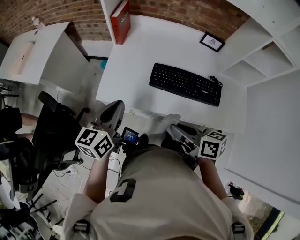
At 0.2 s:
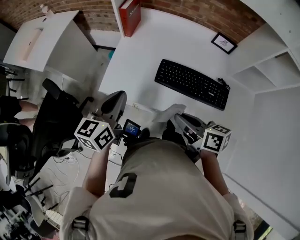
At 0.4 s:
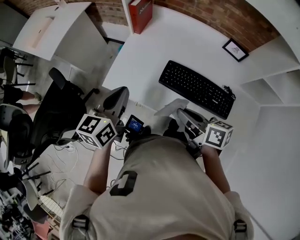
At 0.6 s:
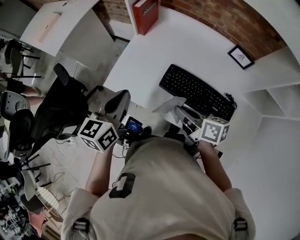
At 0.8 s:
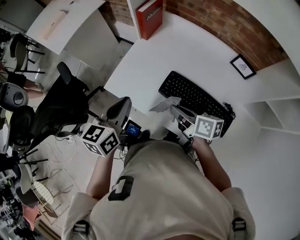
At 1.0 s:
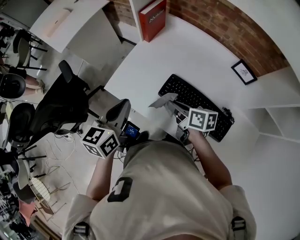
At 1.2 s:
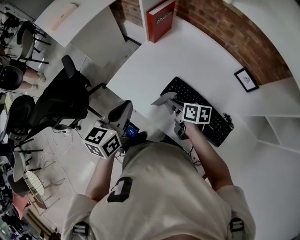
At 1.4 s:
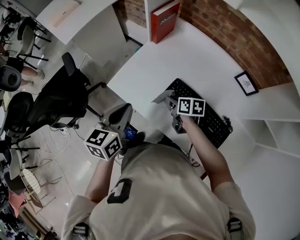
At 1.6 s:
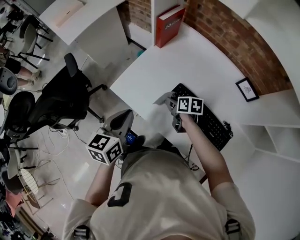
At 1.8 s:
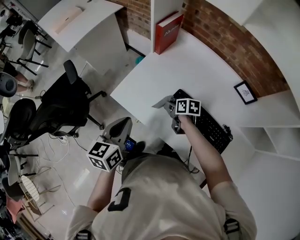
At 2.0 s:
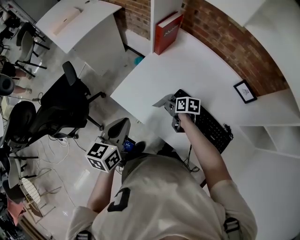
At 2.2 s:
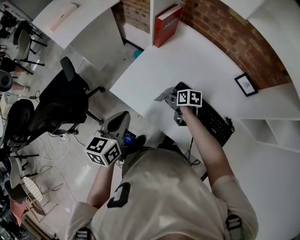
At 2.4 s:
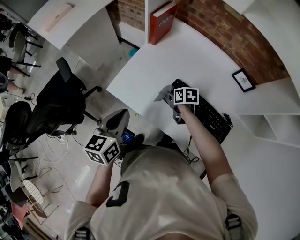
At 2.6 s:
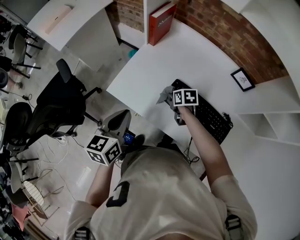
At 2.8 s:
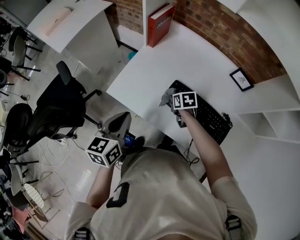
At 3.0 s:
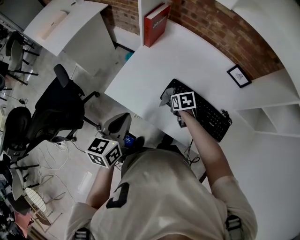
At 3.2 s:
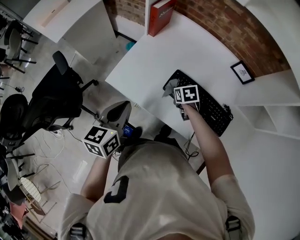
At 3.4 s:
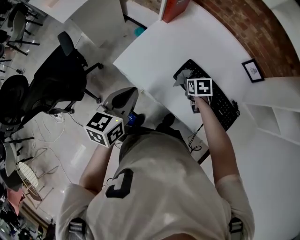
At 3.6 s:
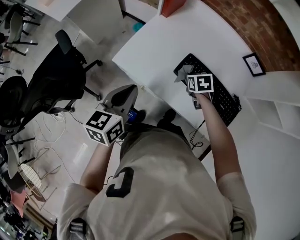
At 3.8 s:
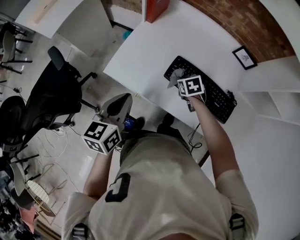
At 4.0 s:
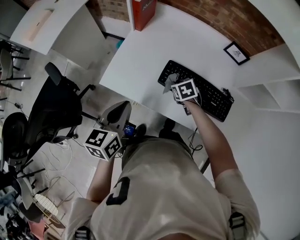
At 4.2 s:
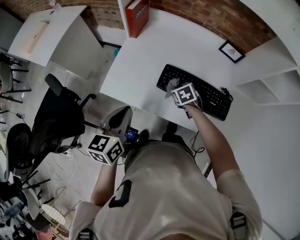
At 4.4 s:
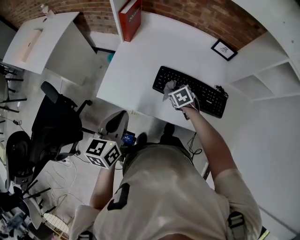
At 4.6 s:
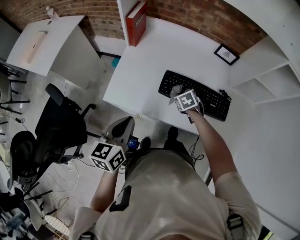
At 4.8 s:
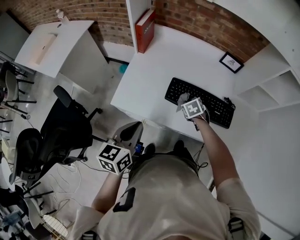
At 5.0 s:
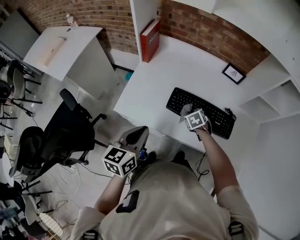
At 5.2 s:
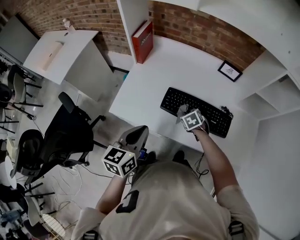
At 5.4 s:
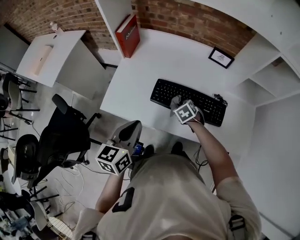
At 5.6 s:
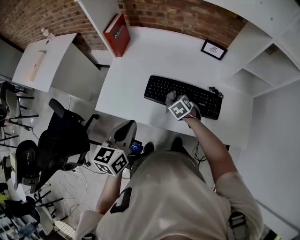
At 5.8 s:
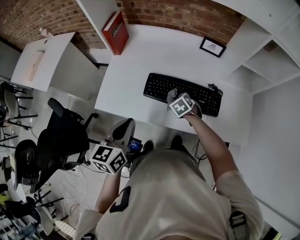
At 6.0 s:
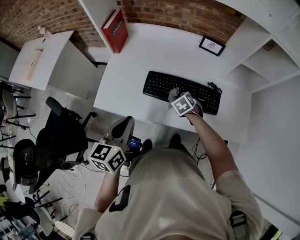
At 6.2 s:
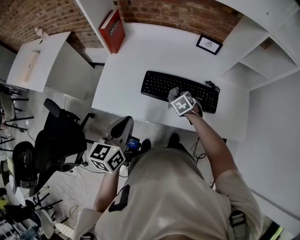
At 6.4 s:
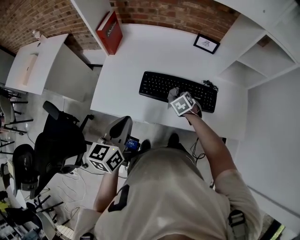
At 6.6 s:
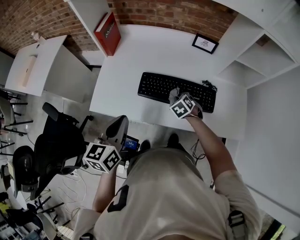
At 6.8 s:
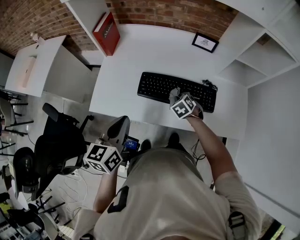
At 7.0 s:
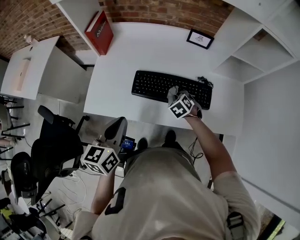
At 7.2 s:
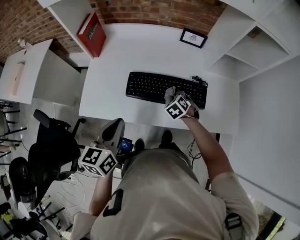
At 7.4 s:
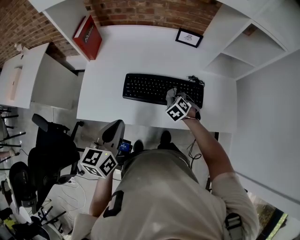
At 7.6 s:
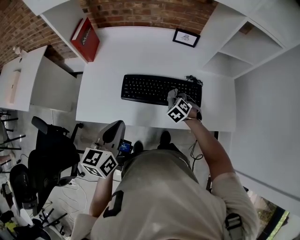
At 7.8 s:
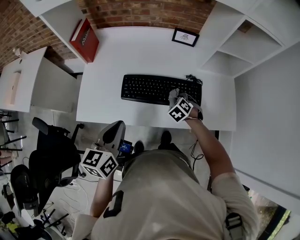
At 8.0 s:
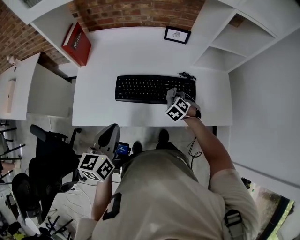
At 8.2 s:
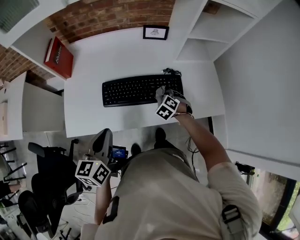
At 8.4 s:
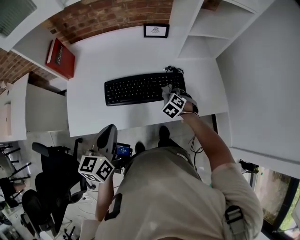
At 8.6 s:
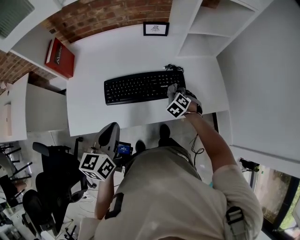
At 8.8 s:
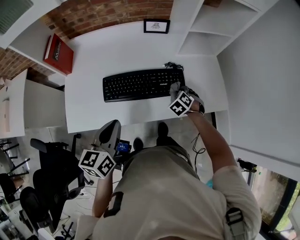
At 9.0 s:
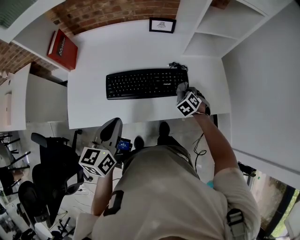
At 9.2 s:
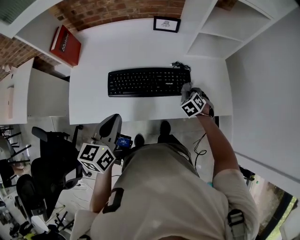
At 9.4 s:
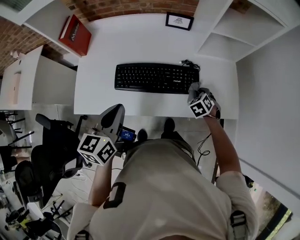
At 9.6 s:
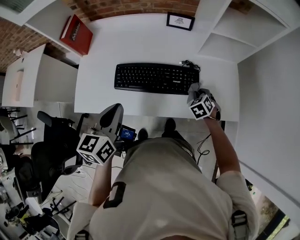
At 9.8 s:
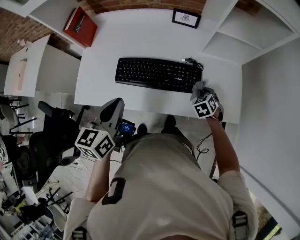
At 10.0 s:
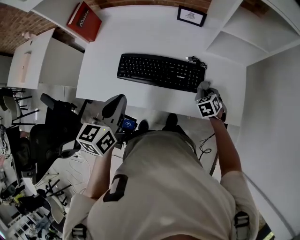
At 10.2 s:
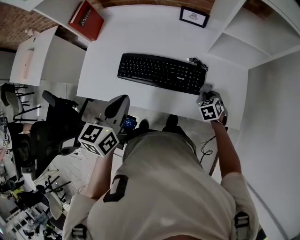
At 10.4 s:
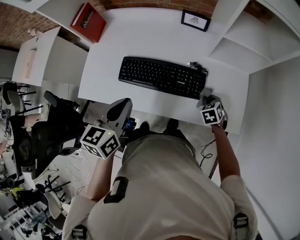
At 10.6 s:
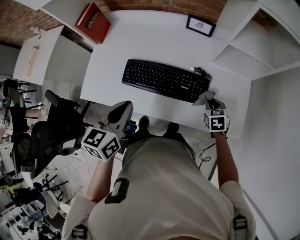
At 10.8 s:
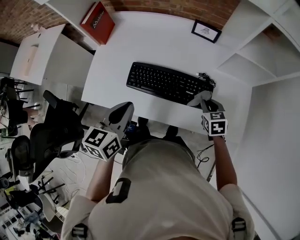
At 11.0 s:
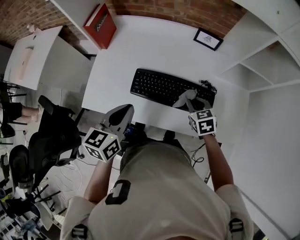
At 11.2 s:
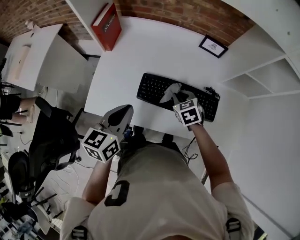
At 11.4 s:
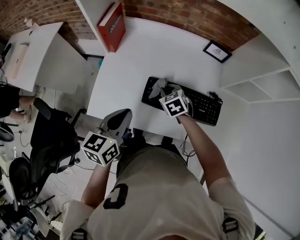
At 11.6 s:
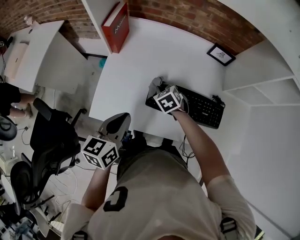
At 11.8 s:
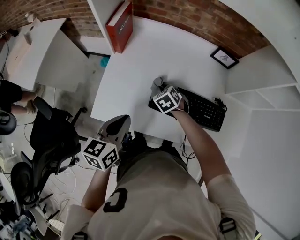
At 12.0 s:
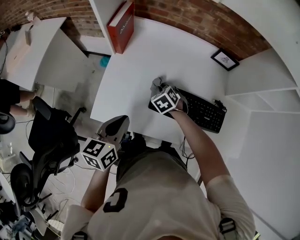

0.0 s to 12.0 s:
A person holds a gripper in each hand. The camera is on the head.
0.0 to 1.6 s: The right gripper travels forward and downward by about 30 cm, and swivels about 30 degrees, while the left gripper changes its angle by some 30 degrees.
1.6 to 3.0 s: The right gripper turns by approximately 20 degrees.
3.0 to 4.4 s: The right gripper ends up about 5 cm from where it was.
4.4 to 6.0 s: Both grippers travel together to the right, some 10 cm.
6.0 to 7.6 s: The right gripper is displaced to the right by about 10 cm.
7.6 to 9.0 s: The left gripper shifts by some 5 cm, while the right gripper shifts roughly 15 cm to the right.
9.0 to 10.4 s: The two grippers go roughly 5 cm to the right.
10.4 to 12.0 s: The right gripper shifts approximately 40 cm to the left, and changes its angle by about 20 degrees. The left gripper goes approximately 25 cm to the left.

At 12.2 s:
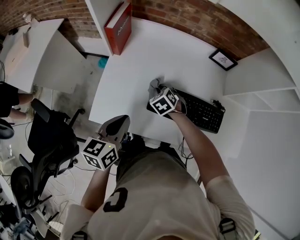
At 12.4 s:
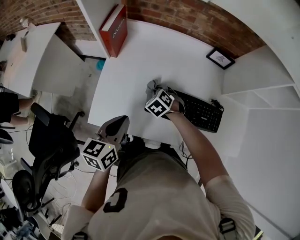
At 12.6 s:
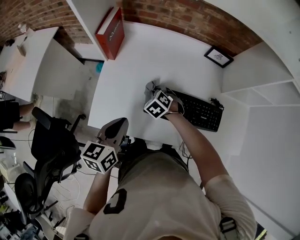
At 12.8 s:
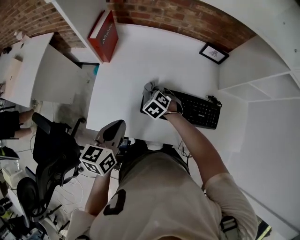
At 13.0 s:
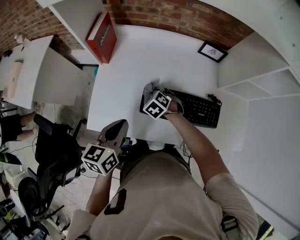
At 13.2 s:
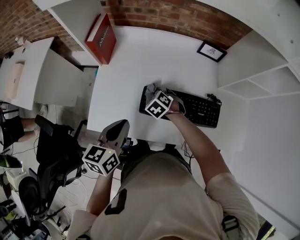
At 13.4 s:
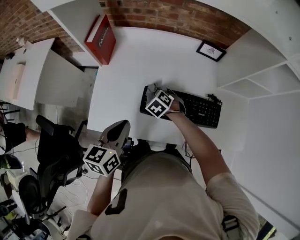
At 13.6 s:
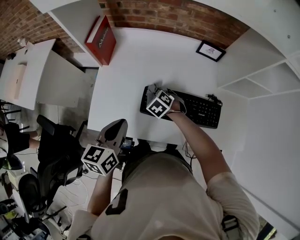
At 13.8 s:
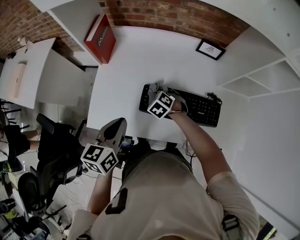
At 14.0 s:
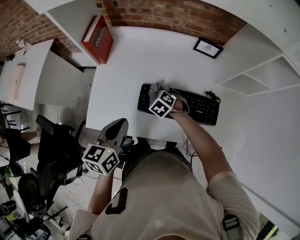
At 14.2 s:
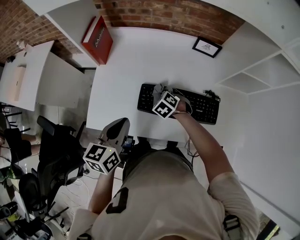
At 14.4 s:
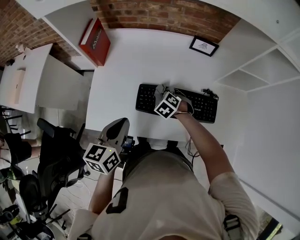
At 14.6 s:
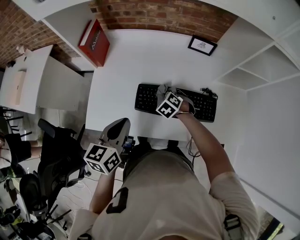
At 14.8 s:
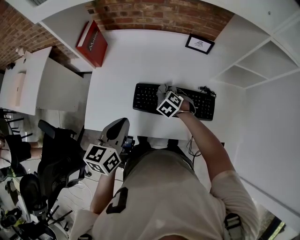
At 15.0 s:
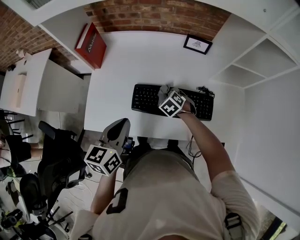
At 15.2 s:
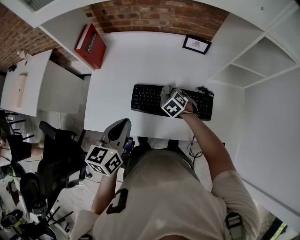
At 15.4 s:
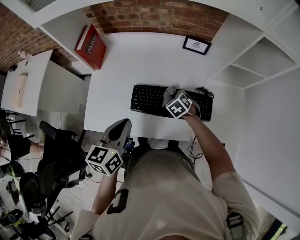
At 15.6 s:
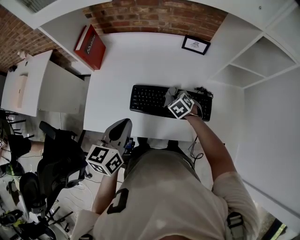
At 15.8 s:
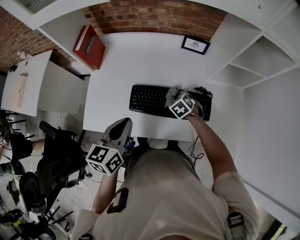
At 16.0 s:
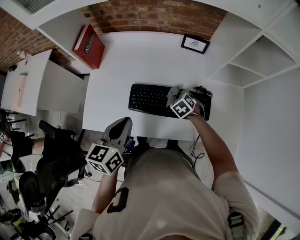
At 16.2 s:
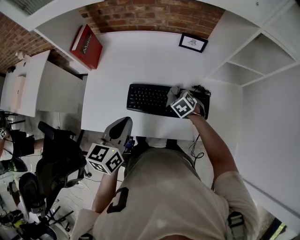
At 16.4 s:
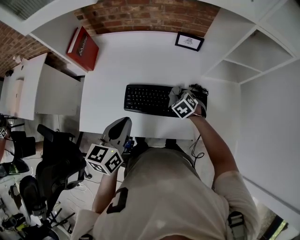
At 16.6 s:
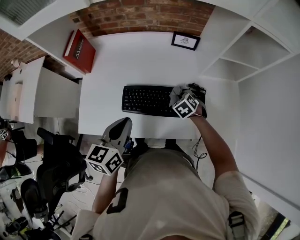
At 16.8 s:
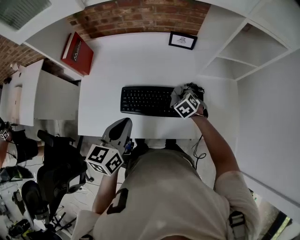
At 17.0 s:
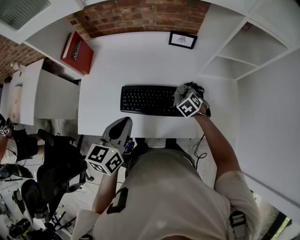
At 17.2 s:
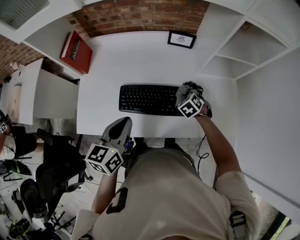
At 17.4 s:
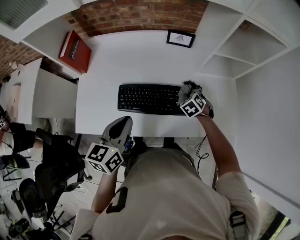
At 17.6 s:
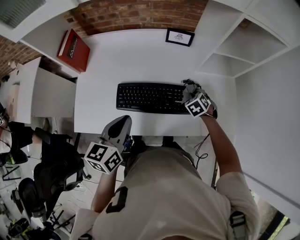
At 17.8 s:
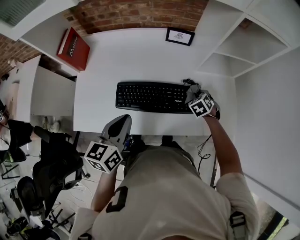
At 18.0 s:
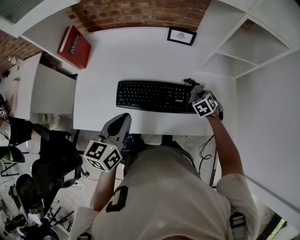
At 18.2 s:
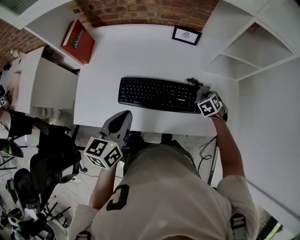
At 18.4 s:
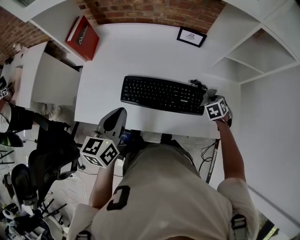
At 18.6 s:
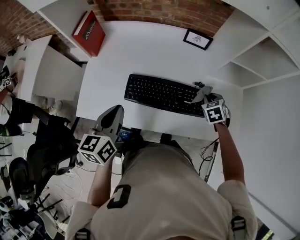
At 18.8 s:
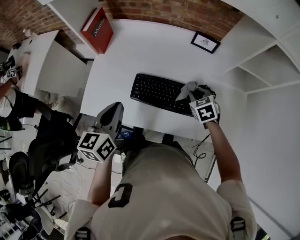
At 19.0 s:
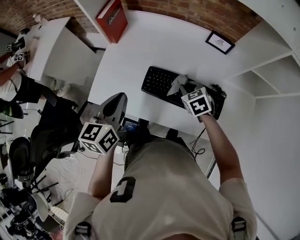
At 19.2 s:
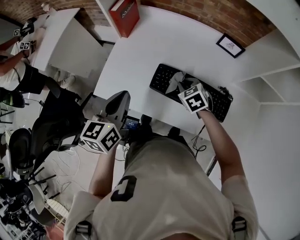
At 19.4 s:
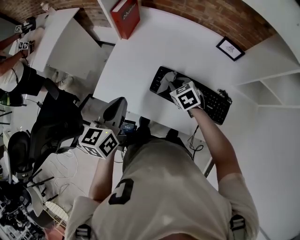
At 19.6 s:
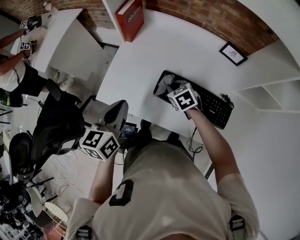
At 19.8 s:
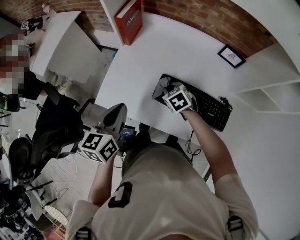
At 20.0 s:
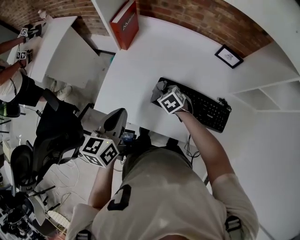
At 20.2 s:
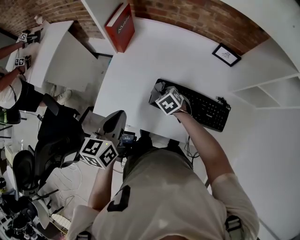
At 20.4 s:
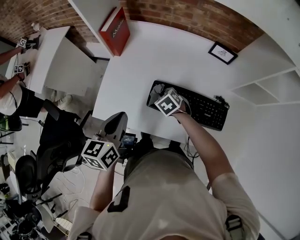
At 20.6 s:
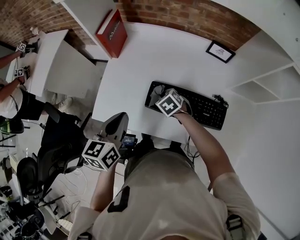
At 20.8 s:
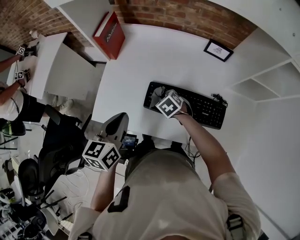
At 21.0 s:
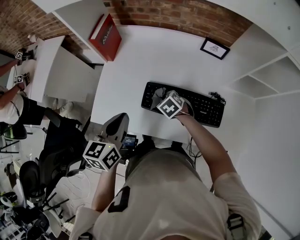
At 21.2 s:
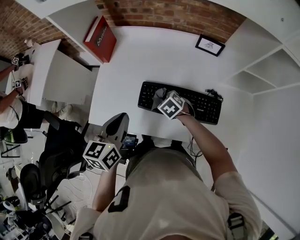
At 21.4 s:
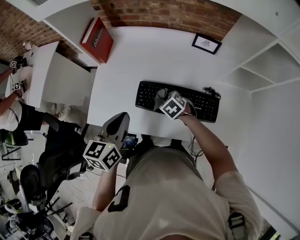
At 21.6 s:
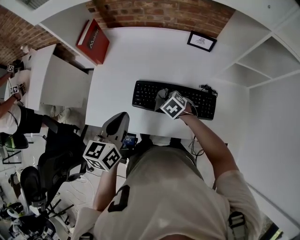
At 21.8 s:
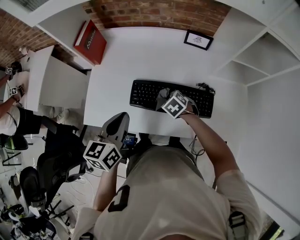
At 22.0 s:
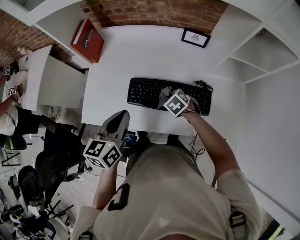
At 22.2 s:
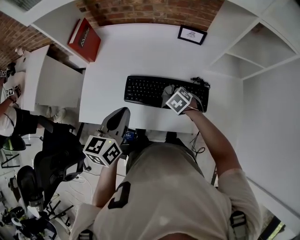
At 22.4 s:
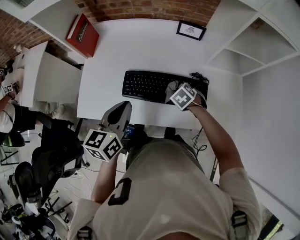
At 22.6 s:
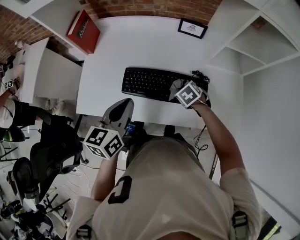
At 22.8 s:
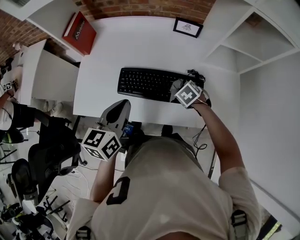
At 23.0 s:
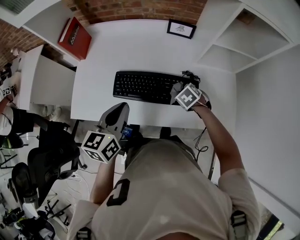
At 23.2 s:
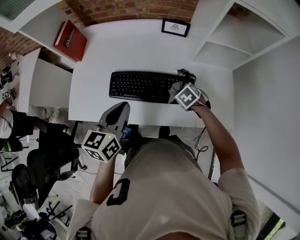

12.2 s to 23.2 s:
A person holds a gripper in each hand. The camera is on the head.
12.2 to 13.8 s: The left gripper changes place by some 5 cm; the right gripper is displaced to the right by approximately 5 cm.
13.8 to 15.4 s: The left gripper shifts about 5 cm to the right; the right gripper travels to the right by some 15 cm.
15.4 to 17.0 s: The right gripper travels to the right by roughly 10 cm. The left gripper heads to the right, covering about 5 cm.
17.0 to 18.4 s: The right gripper heads to the right, covering about 15 cm.
18.4 to 20.0 s: The right gripper changes place by approximately 40 cm, and changes its angle by roughly 40 degrees. The left gripper shifts by some 15 cm.
20.0 to 21.6 s: The right gripper travels to the right and backward by roughly 15 cm. Meanwhile the left gripper goes about 10 cm to the right.
21.6 to 23.2 s: The left gripper is displaced to the right by some 10 cm; the right gripper travels to the right by approximately 20 cm.

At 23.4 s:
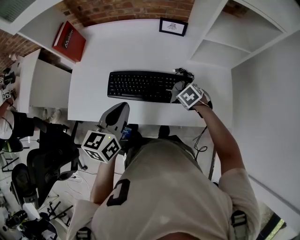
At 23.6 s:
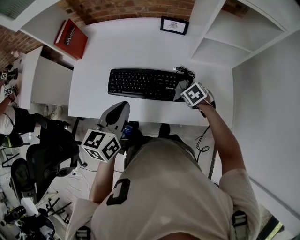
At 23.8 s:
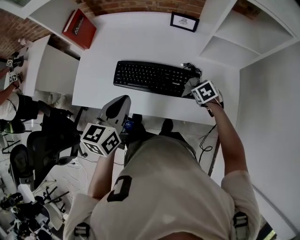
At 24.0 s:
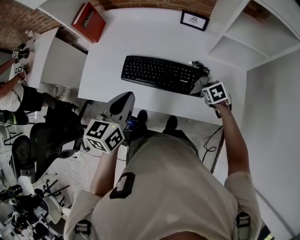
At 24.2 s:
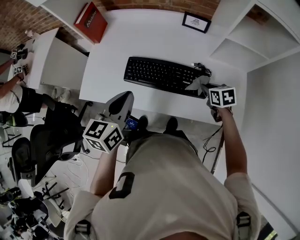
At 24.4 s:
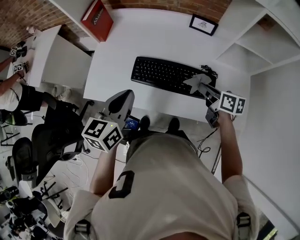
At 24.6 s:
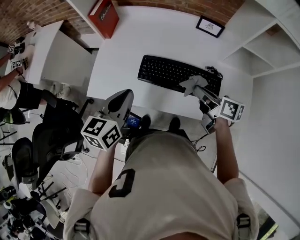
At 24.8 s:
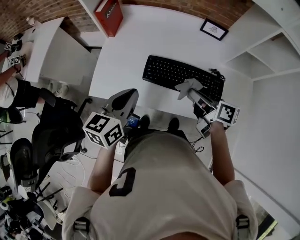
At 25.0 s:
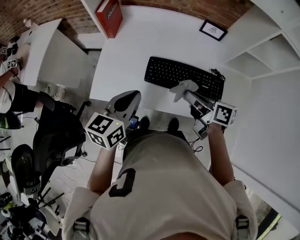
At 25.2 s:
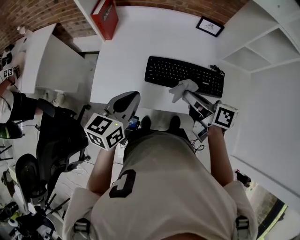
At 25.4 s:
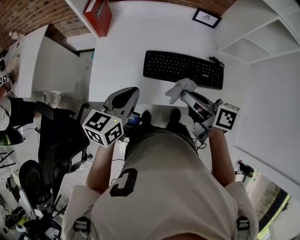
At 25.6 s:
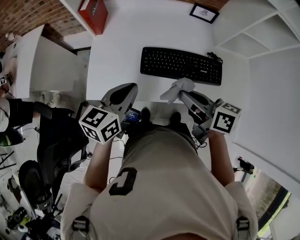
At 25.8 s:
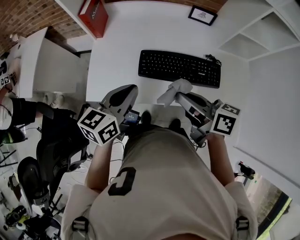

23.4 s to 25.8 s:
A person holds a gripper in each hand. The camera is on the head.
23.4 to 24.6 s: The left gripper heads to the left, covering roughly 15 cm, while the right gripper moves upward and to the left, approximately 20 cm, and tilts its fingers some 50 degrees upward.
24.6 to 25.8 s: The right gripper heads to the left, upward and backward, covering about 15 cm.
